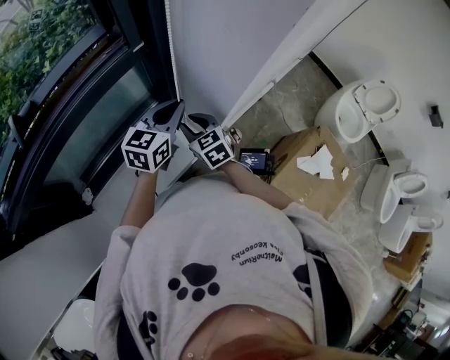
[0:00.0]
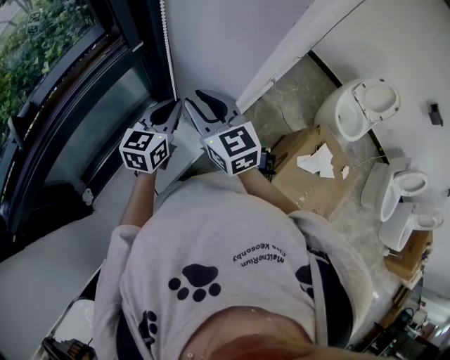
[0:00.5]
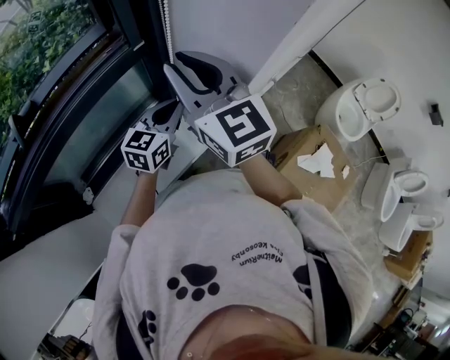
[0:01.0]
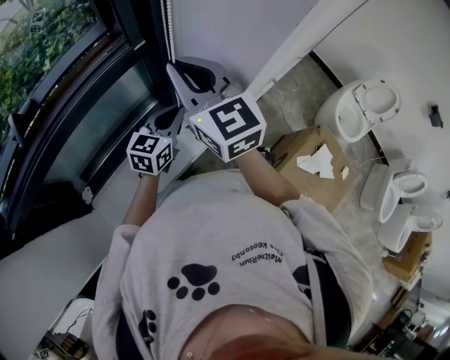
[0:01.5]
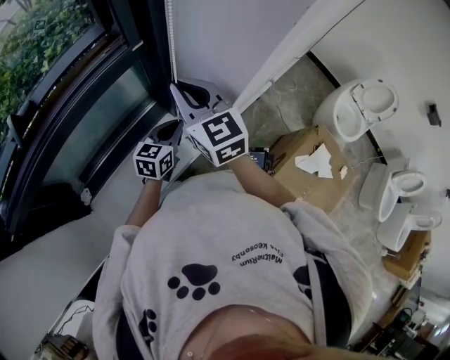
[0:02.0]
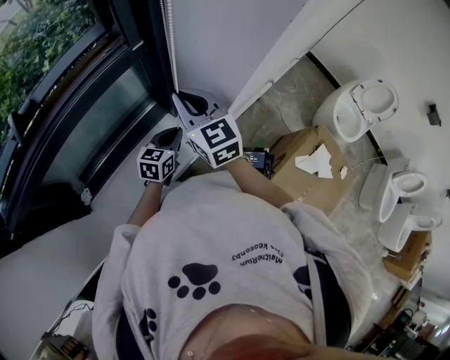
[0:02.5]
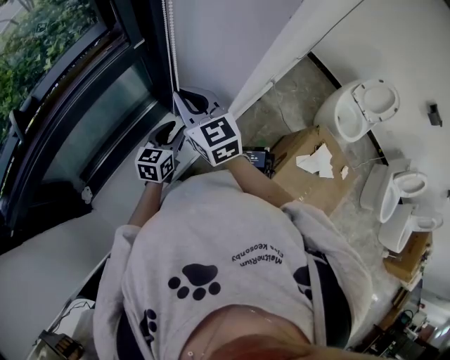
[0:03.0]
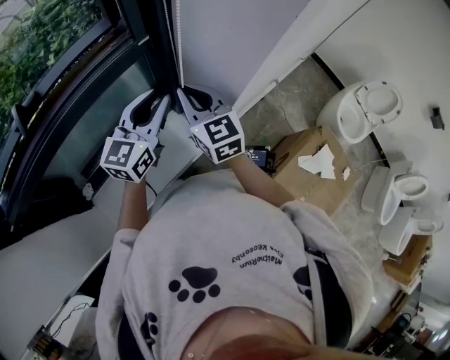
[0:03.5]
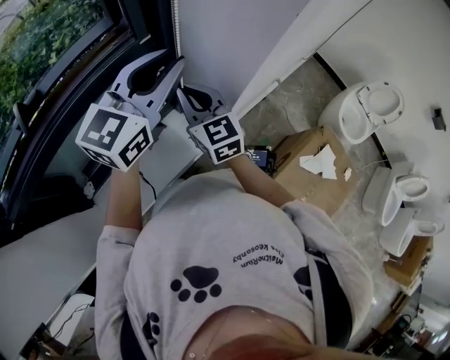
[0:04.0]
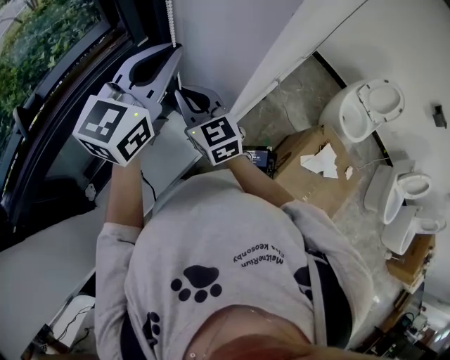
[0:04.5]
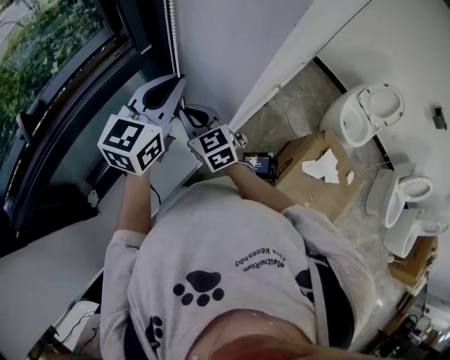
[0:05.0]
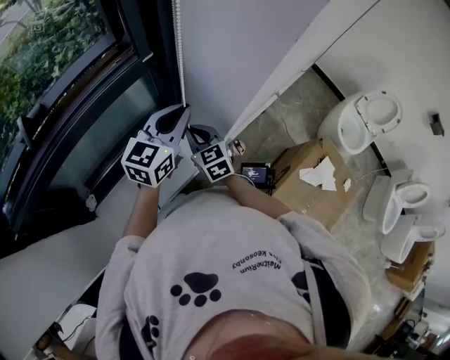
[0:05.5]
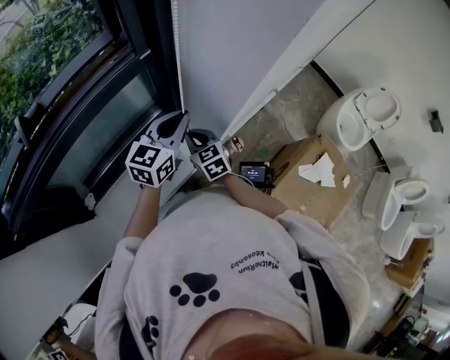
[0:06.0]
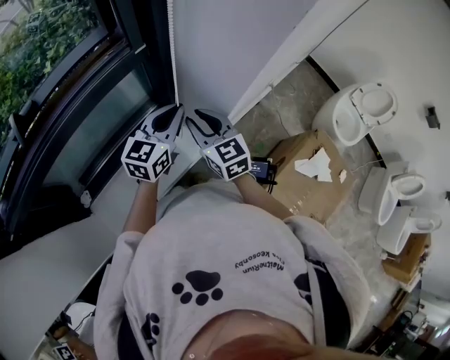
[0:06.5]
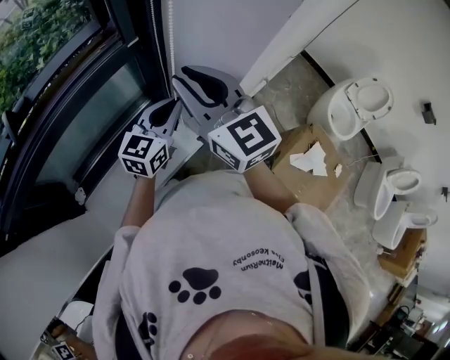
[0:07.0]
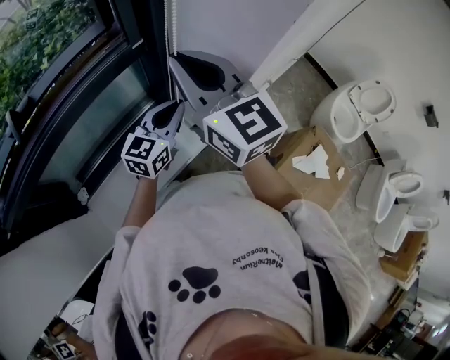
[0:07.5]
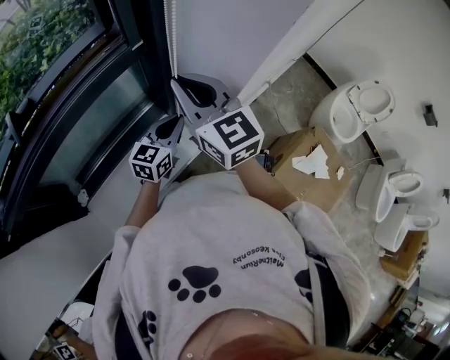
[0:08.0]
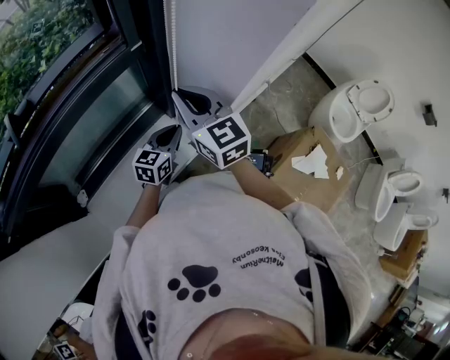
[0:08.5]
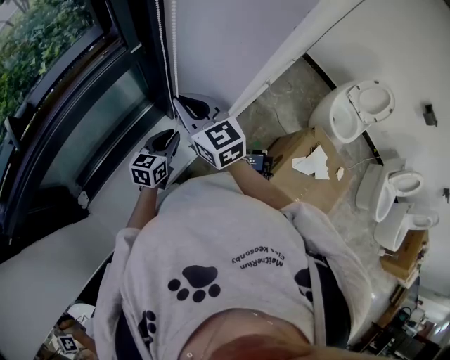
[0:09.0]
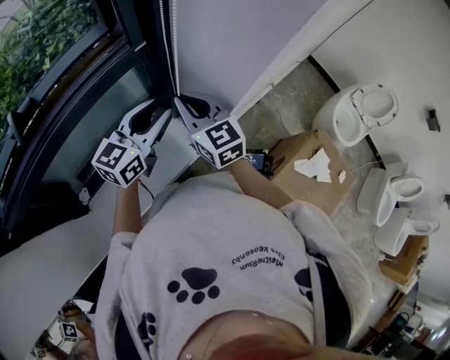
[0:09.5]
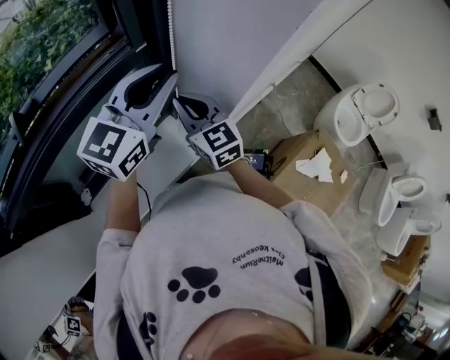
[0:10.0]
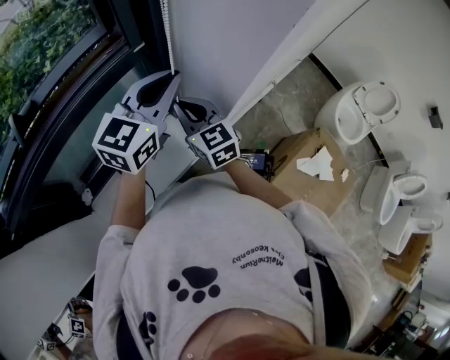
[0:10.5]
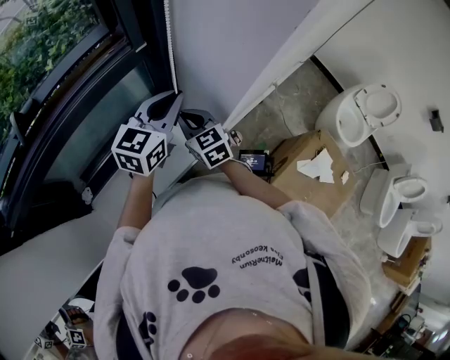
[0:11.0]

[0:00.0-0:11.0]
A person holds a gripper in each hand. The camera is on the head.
0:00.0 to 0:02.0: The left gripper goes about 10 cm downward, while the right gripper heads upward, covering some 20 cm, changes its angle by approximately 20 degrees, and closes up.
0:02.0 to 0:03.5: The left gripper heads upward, covering roughly 20 cm, swivels some 20 degrees, and opens its fingers.
0:03.5 to 0:05.5: The right gripper heads downward, covering roughly 15 cm. The left gripper goes upward and returns, approximately 15 cm each way, and closes its fingers.
0:05.5 to 0:07.5: The right gripper shifts approximately 30 cm upward, changes its angle by about 30 degrees, and opens, then closes once more.
0:07.5 to 0:09.0: The grippers both shift downward by roughly 15 cm.
0:09.0 to 0:11.0: The left gripper goes approximately 20 cm upward, and opens, then closes again; the right gripper moves downward, some 10 cm.

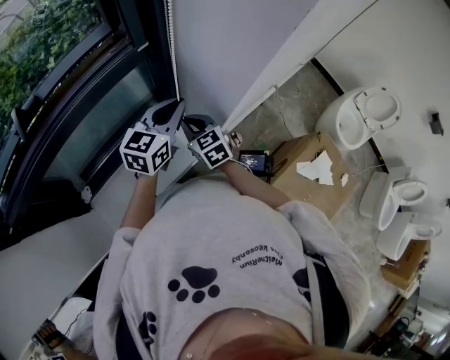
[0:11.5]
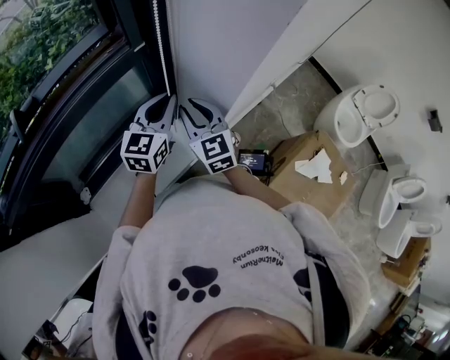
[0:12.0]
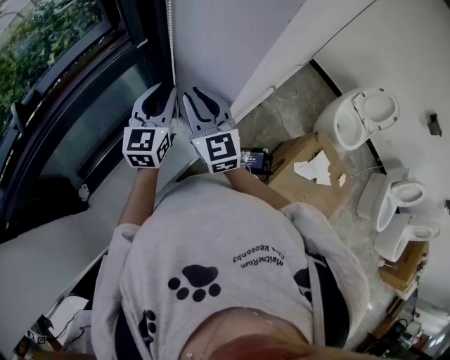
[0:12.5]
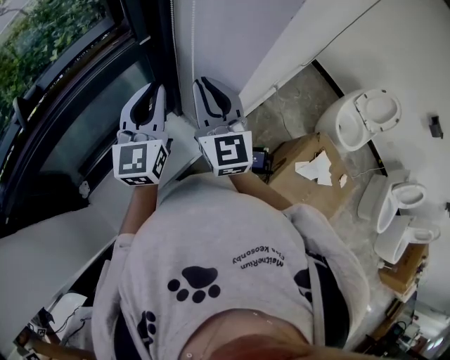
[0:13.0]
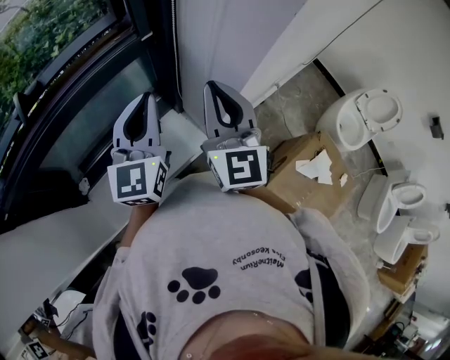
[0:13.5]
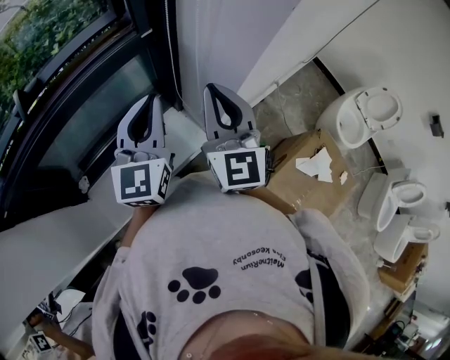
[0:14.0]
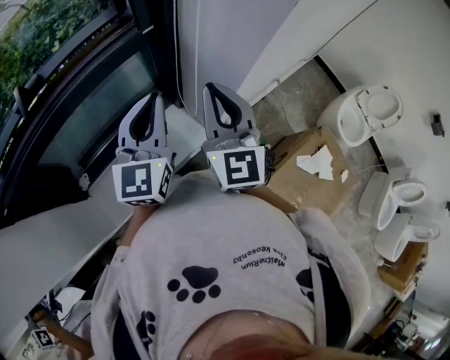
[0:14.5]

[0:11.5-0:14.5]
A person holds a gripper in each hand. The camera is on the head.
0:11.5 to 0:13.0: The left gripper travels upward by roughly 10 cm, and rotates approximately 30 degrees, while the right gripper shifts approximately 20 cm upward, and angles its fingers upward, by approximately 30 degrees.
0:13.0 to 0:14.5: The right gripper shifts by roughly 5 cm. Meanwhile the left gripper heads backward, covering some 5 cm.

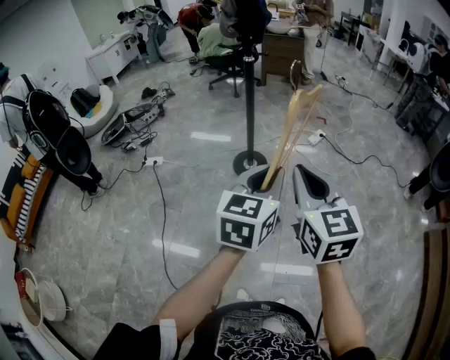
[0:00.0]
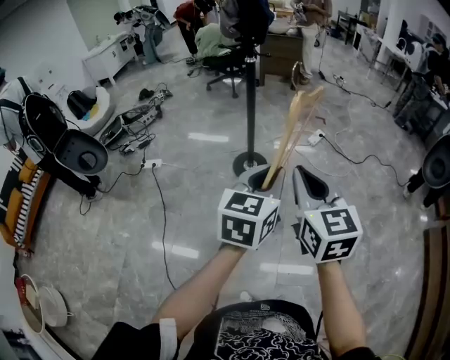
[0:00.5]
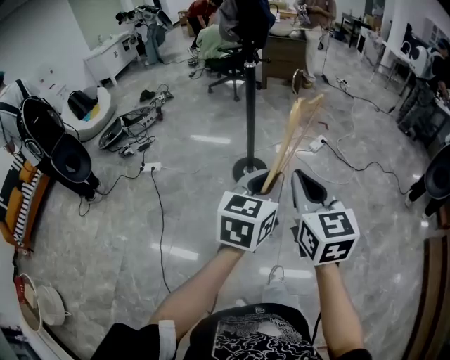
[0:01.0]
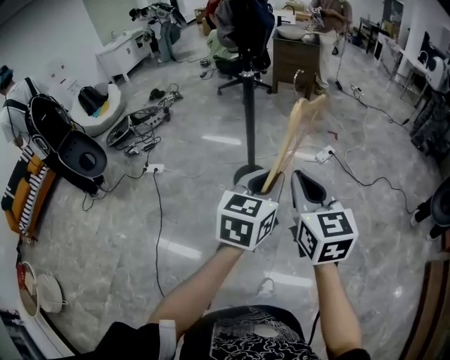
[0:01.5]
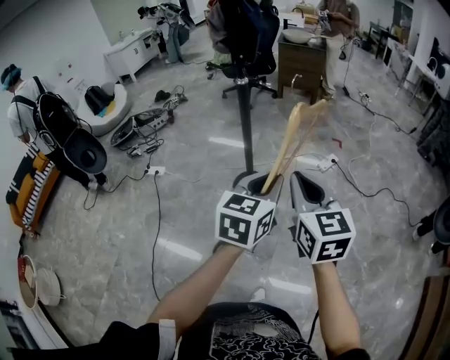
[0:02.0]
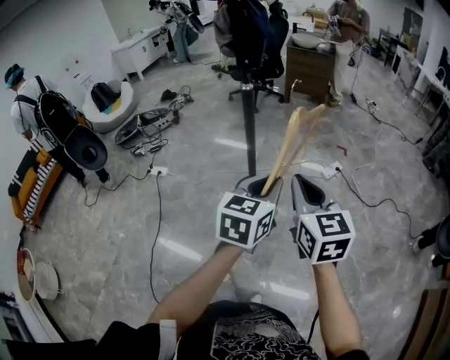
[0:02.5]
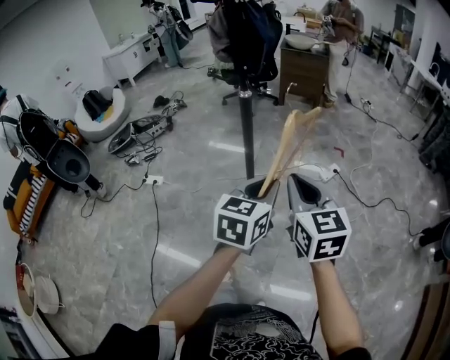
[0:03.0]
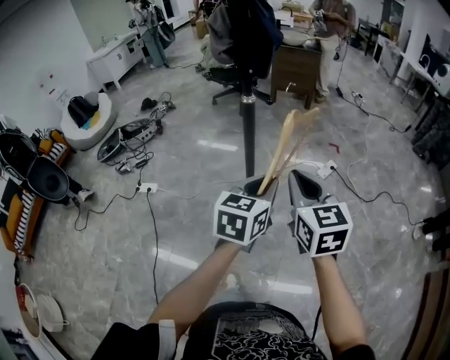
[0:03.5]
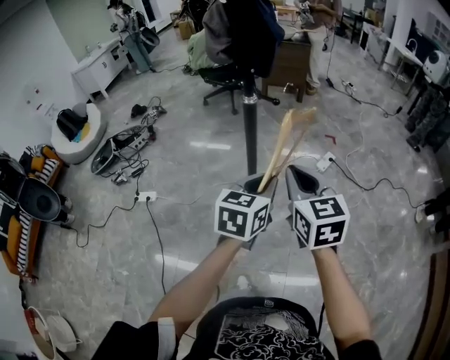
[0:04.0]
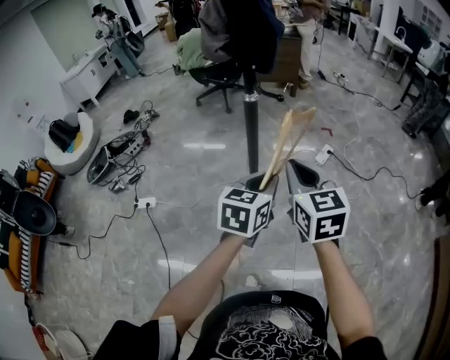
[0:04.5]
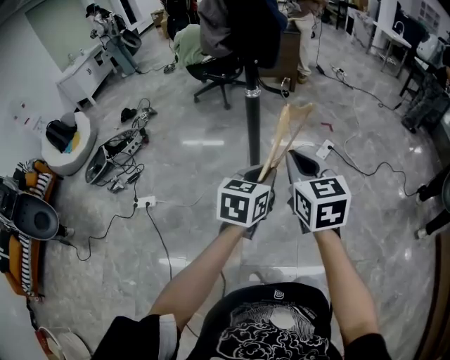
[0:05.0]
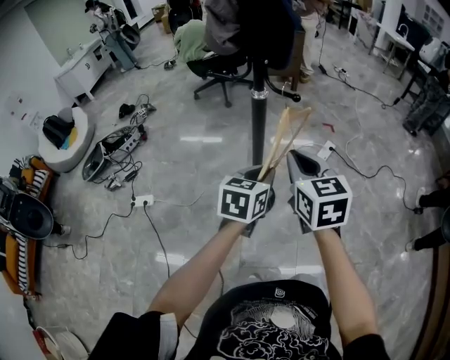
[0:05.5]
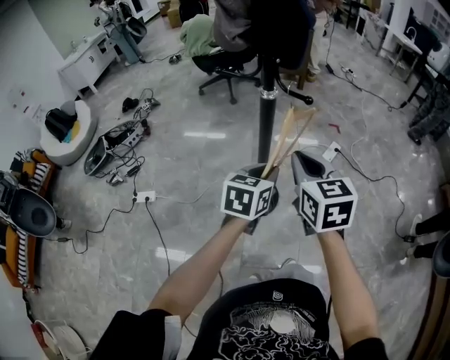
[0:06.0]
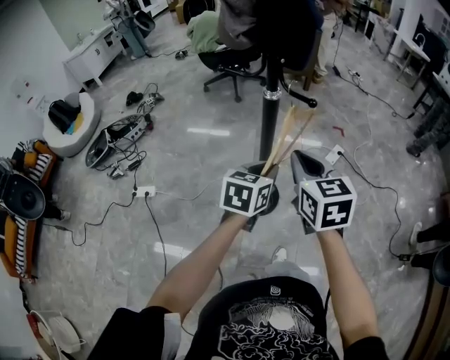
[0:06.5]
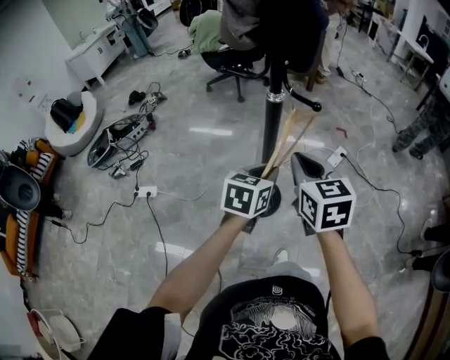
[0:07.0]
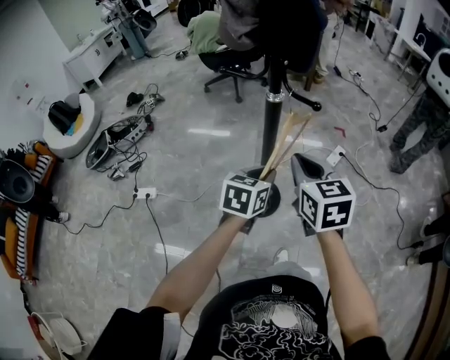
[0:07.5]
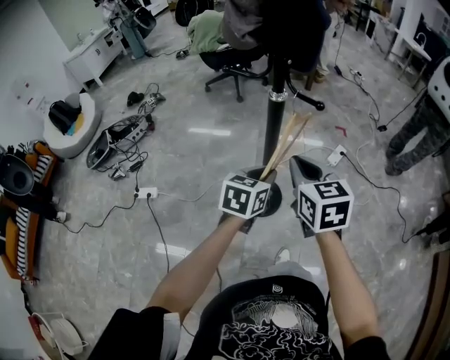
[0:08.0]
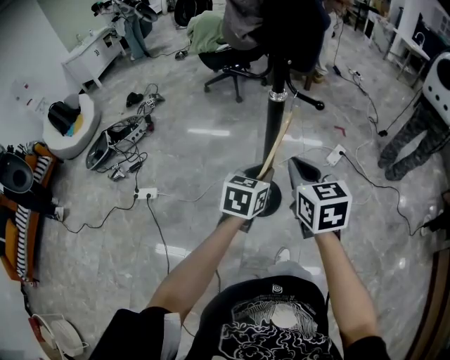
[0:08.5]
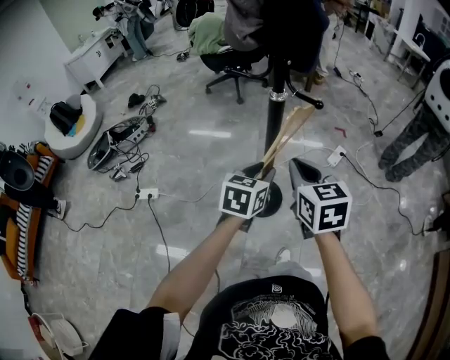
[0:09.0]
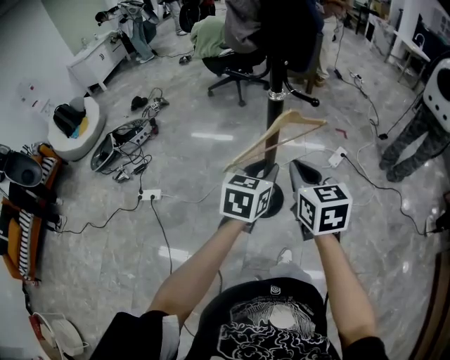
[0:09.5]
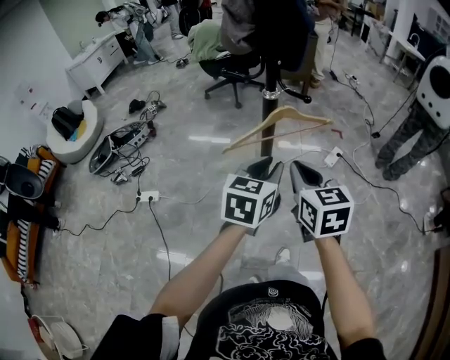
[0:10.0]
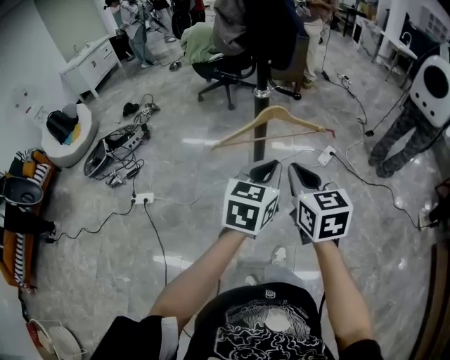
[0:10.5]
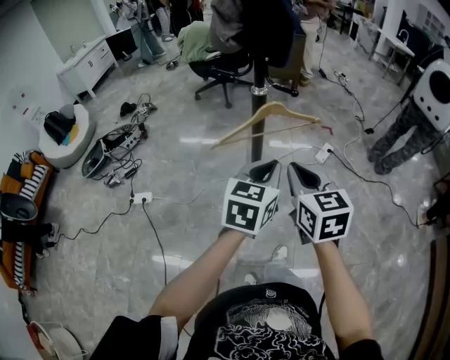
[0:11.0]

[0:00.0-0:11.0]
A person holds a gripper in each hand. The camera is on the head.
0:00.0 to 0:02.0: The grippers both shift forward and to the right by some 25 cm.
0:02.0 to 0:03.5: Both grippers move forward and to the left, about 20 cm.
0:03.5 to 0:05.5: The left gripper goes roughly 20 cm to the left, forward and downward. The right gripper shifts some 15 cm to the left and forward.
0:05.5 to 0:07.5: The left gripper travels downward by roughly 5 cm, while the right gripper shifts by roughly 5 cm.
0:07.5 to 0:09.0: The grippers move only a little.
0:09.0 to 0:11.0: The left gripper moves upward, backward and to the right, roughly 15 cm, and closes. The right gripper travels backward by some 10 cm.

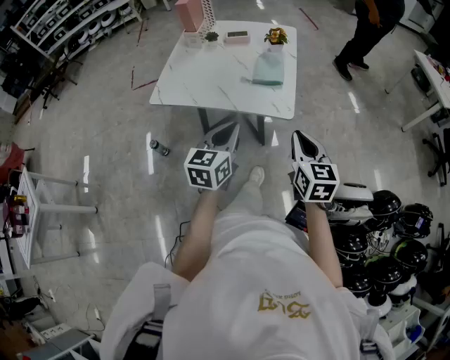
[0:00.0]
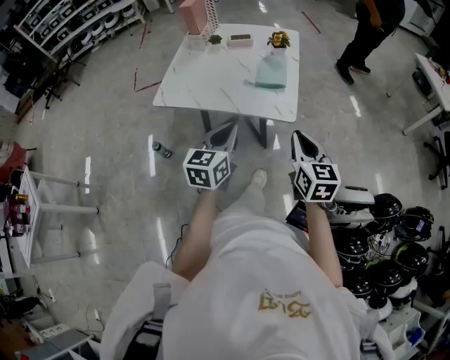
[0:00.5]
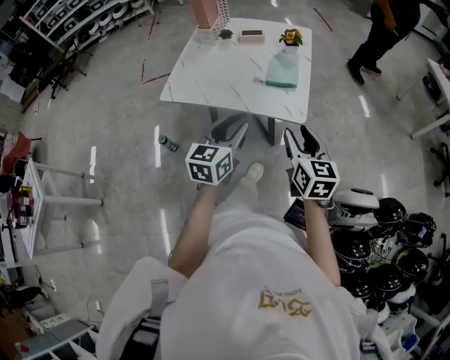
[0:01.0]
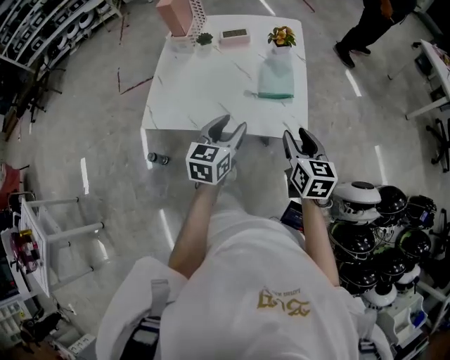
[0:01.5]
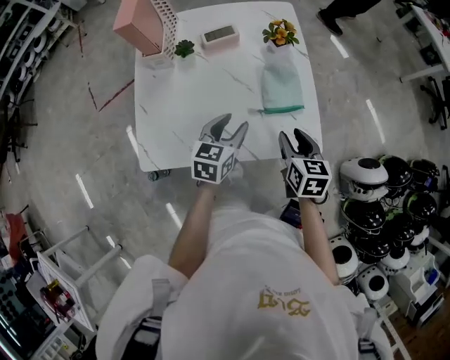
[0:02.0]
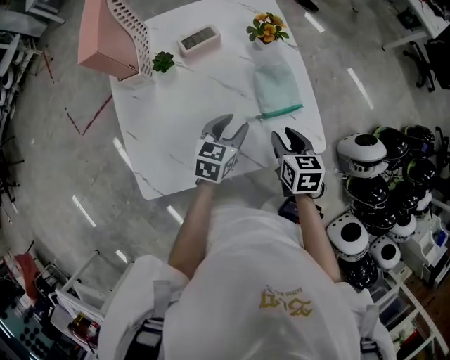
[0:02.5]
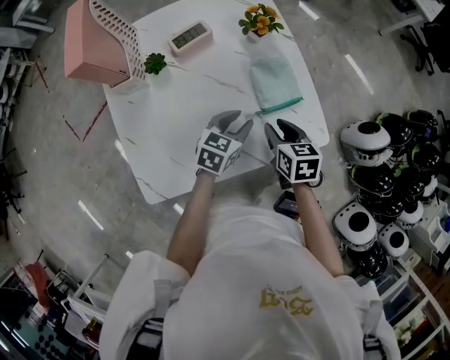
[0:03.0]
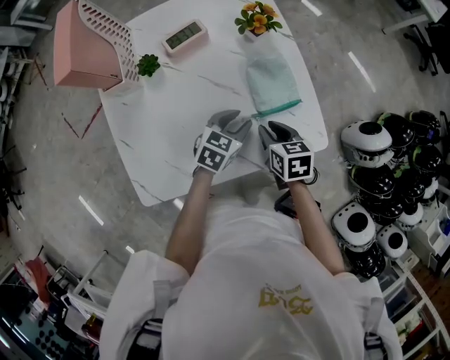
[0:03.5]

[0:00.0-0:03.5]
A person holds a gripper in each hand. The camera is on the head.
0:00.0 to 0:02.0: The left gripper moves forward, approximately 30 cm, changes its angle by some 30 degrees, and opens its fingers; the right gripper moves forward, to the left and downward, roughly 30 cm, swivels about 30 degrees, and opens up.
0:02.0 to 0:03.5: The right gripper moves downward and to the left, approximately 10 cm. Meanwhile the left gripper travels downward and forward by approximately 10 cm, and rotates some 30 degrees.
